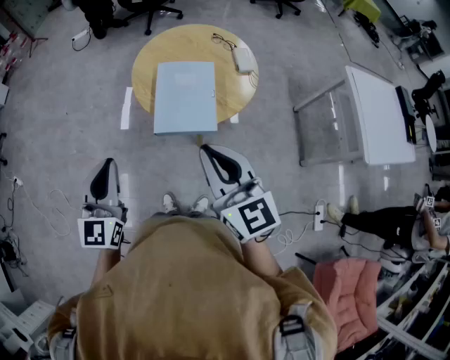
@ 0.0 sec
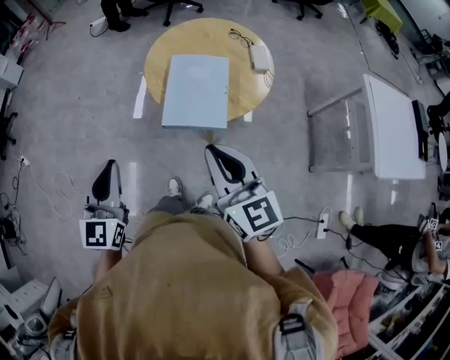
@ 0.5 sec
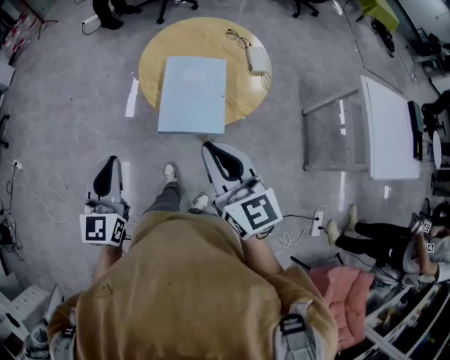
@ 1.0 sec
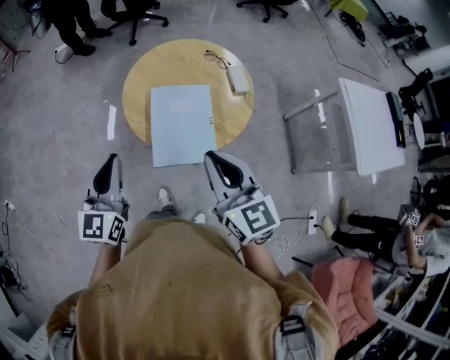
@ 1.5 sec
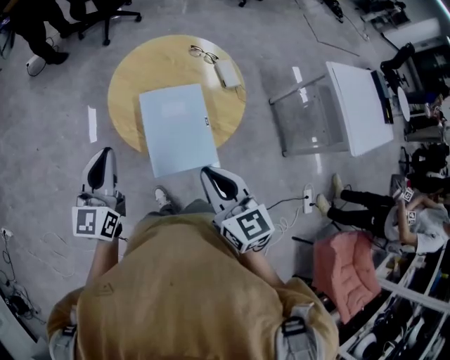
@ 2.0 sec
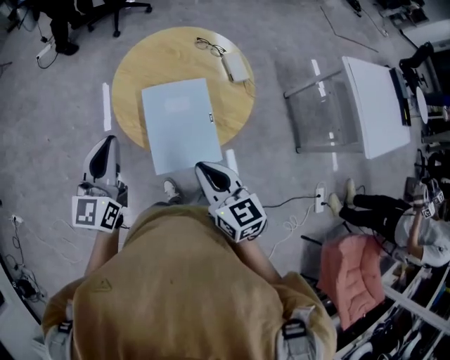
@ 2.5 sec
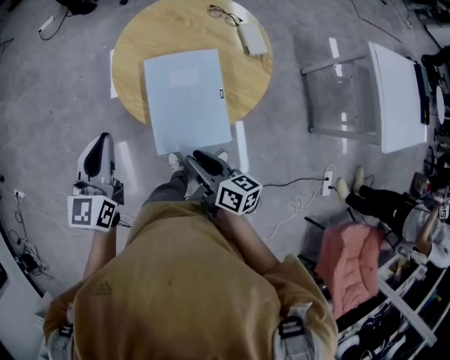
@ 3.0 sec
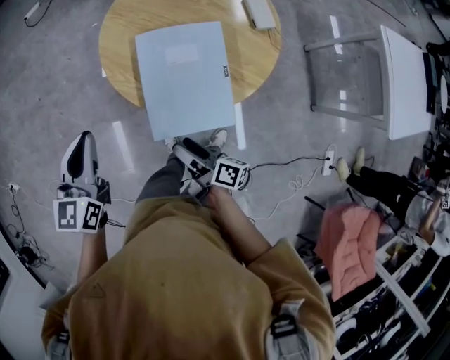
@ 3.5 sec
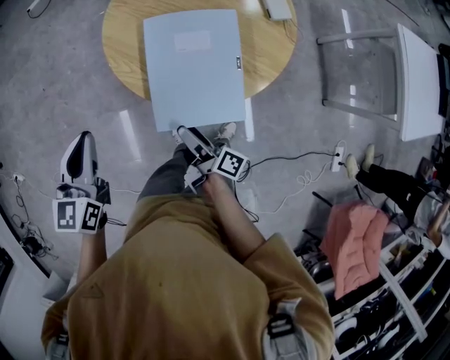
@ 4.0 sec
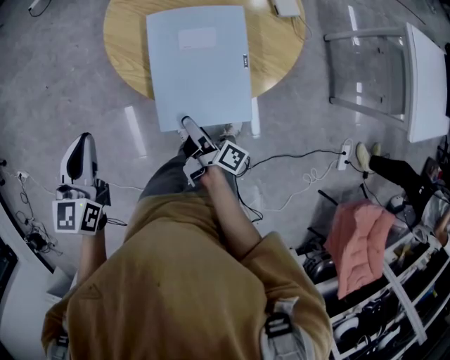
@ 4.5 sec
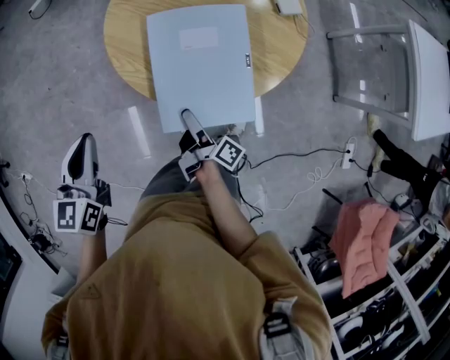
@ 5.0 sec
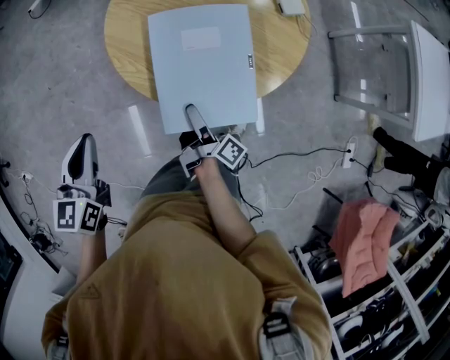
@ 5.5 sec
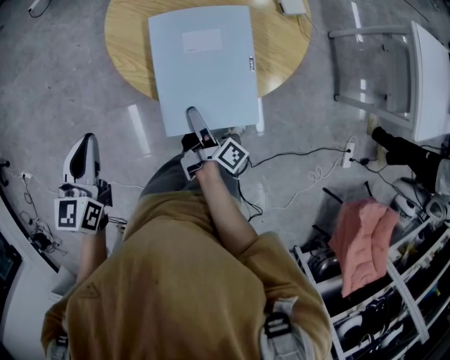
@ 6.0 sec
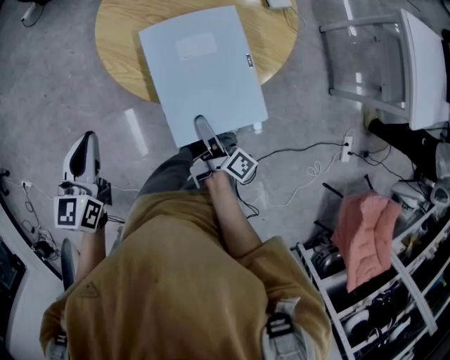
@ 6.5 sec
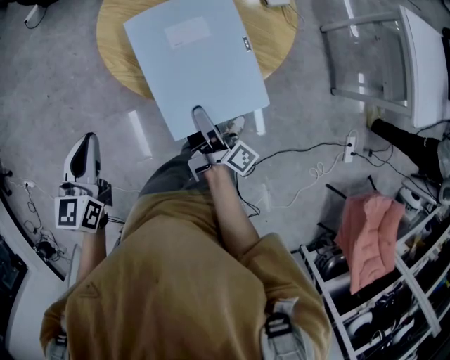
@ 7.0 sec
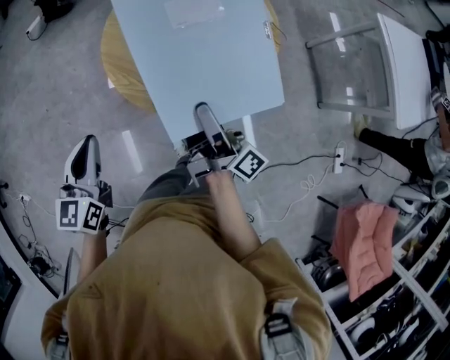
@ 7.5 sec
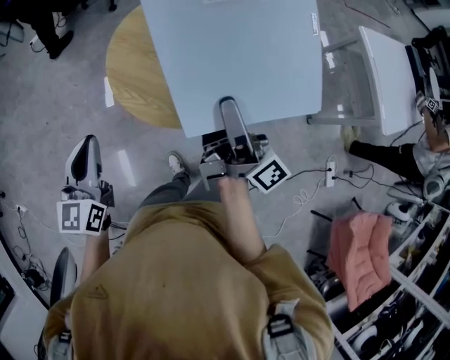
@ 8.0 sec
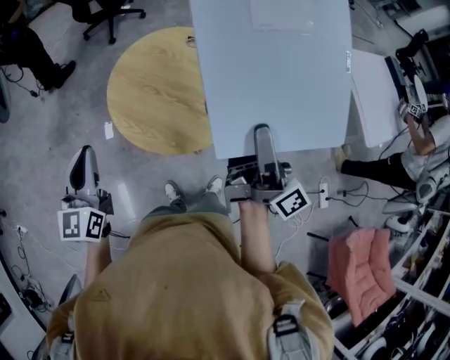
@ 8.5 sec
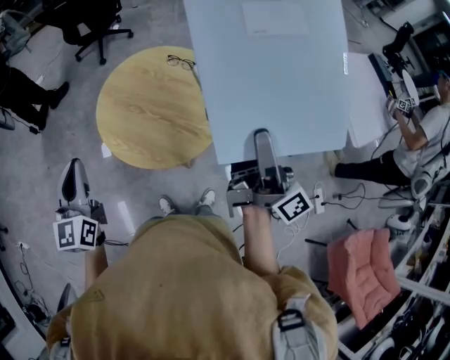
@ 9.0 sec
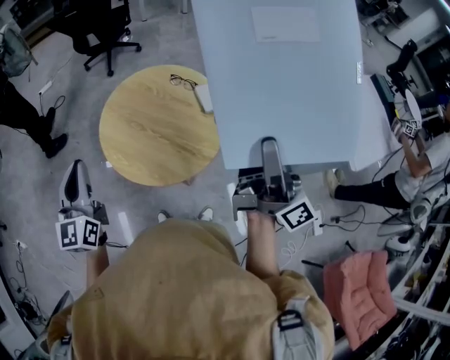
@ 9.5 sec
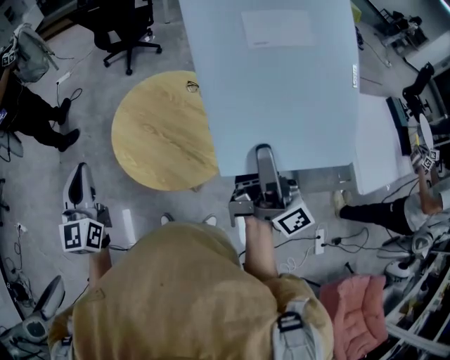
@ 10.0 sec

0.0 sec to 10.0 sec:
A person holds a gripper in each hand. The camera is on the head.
0.0 sec to 2.0 sec: The left gripper shifts some 25 cm forward, and swivels about 20 degrees. The right gripper moves forward and downward, roughly 15 cm, and rotates some 20 degrees.
2.0 sec to 4.0 sec: The left gripper moves downward, approximately 10 cm, and swivels approximately 20 degrees; the right gripper is displaced downward by about 30 cm, rotates around the line of its fingers by approximately 80 degrees, clockwise from behind, and opens its fingers.
4.0 sec to 6.0 sec: The right gripper shifts by about 5 cm.
6.0 sec to 8.0 sec: The right gripper goes about 35 cm upward, and tips its fingers upward by some 30 degrees. Meanwhile the left gripper heads upward, covering some 10 cm.
8.0 sec to 10.0 sec: The right gripper moves to the right and upward, some 25 cm, while the left gripper moves upward and to the right, about 15 cm, and turns by some 20 degrees.

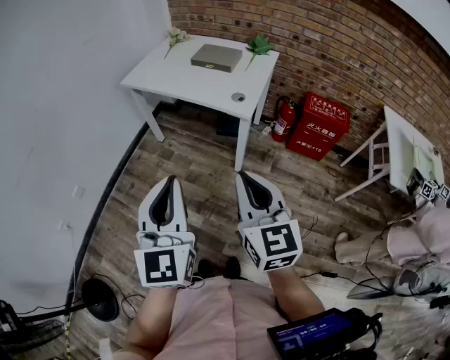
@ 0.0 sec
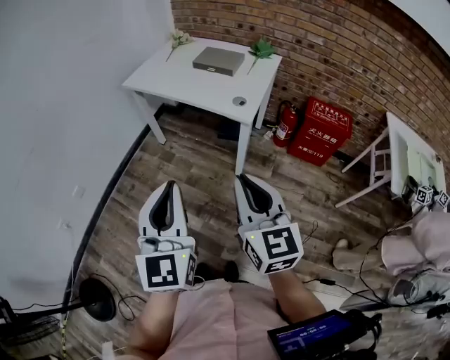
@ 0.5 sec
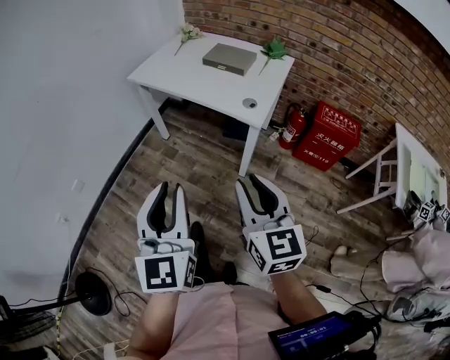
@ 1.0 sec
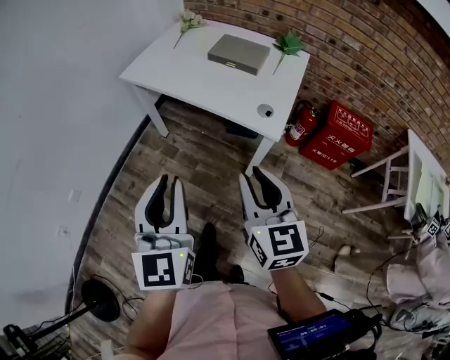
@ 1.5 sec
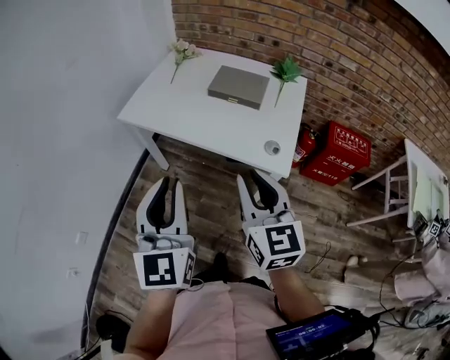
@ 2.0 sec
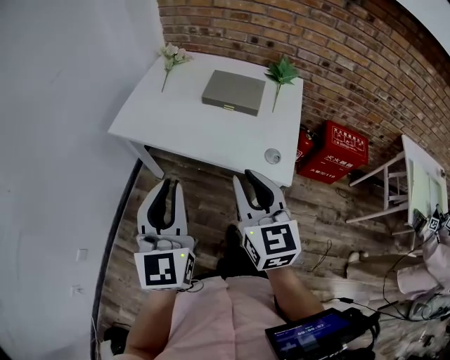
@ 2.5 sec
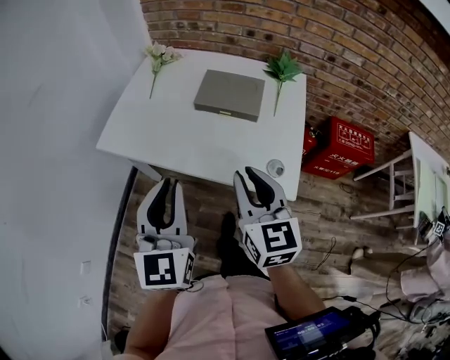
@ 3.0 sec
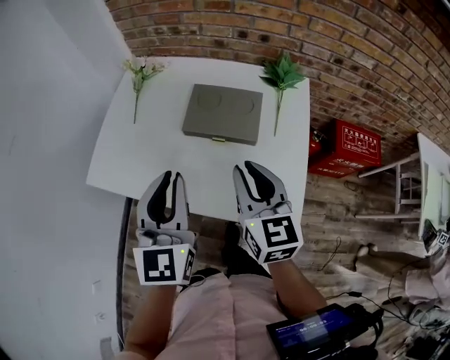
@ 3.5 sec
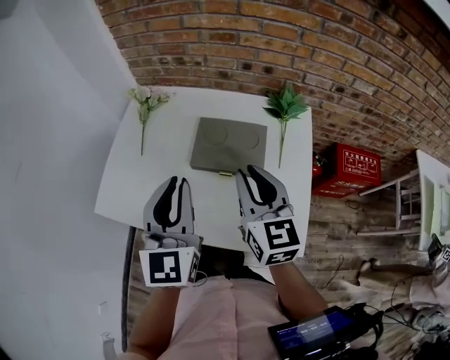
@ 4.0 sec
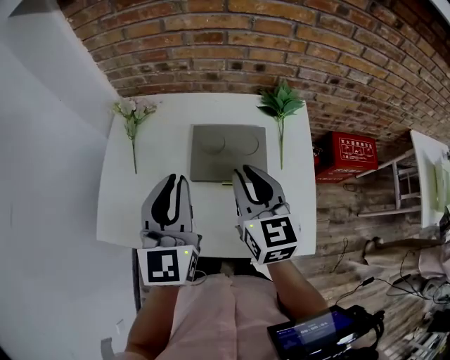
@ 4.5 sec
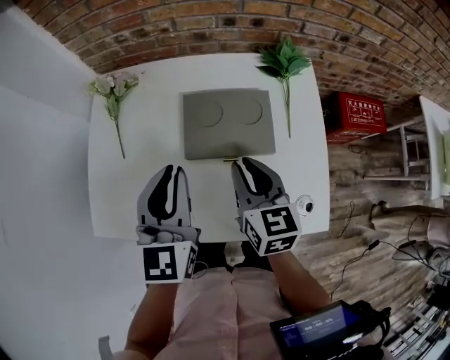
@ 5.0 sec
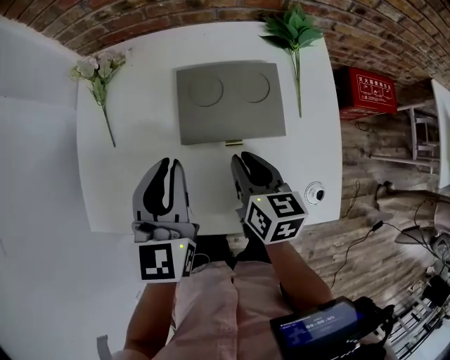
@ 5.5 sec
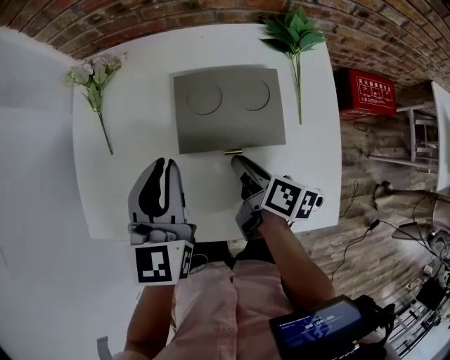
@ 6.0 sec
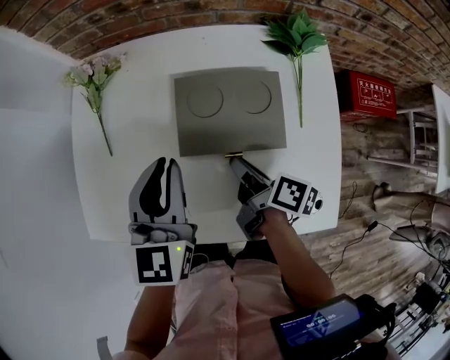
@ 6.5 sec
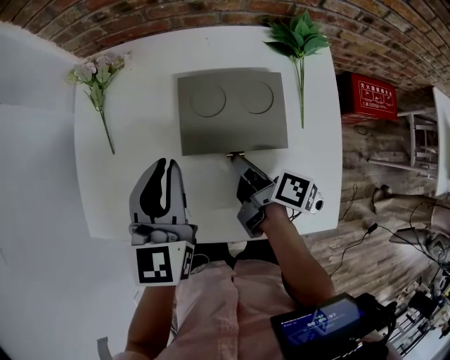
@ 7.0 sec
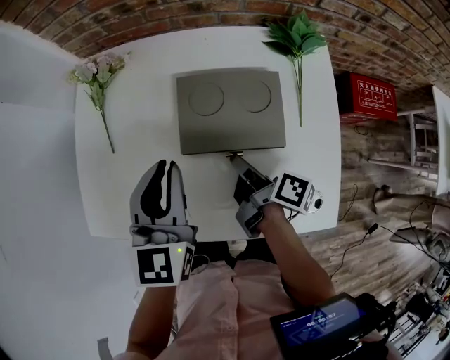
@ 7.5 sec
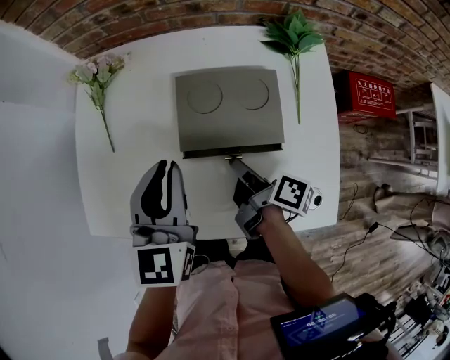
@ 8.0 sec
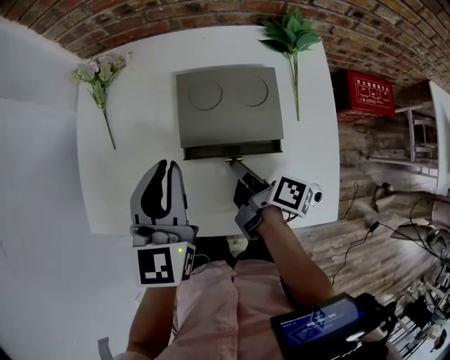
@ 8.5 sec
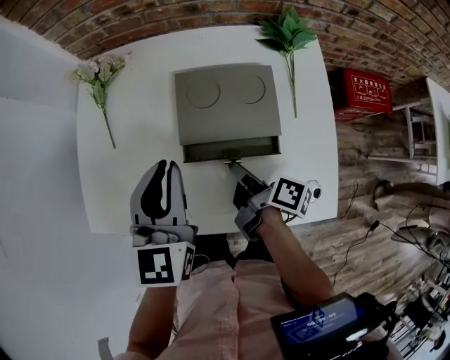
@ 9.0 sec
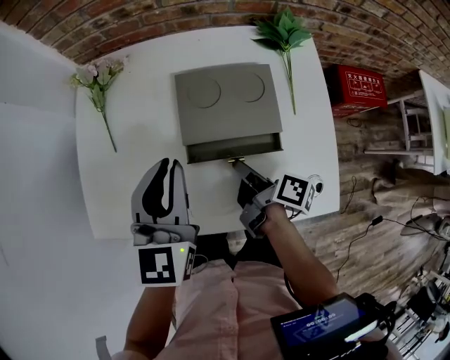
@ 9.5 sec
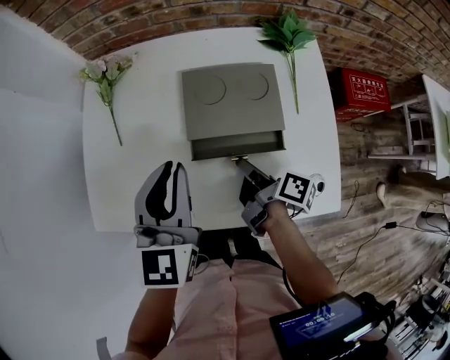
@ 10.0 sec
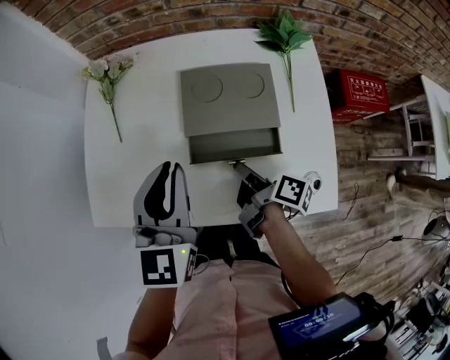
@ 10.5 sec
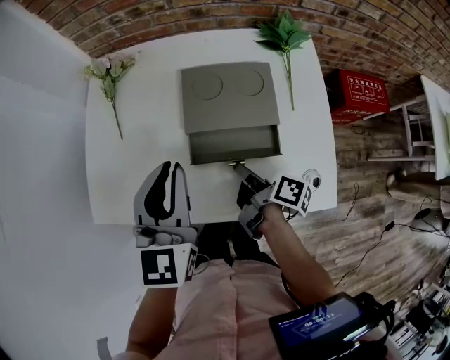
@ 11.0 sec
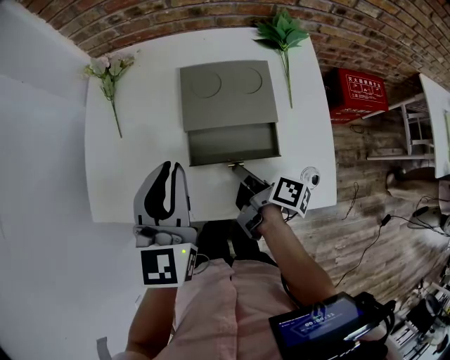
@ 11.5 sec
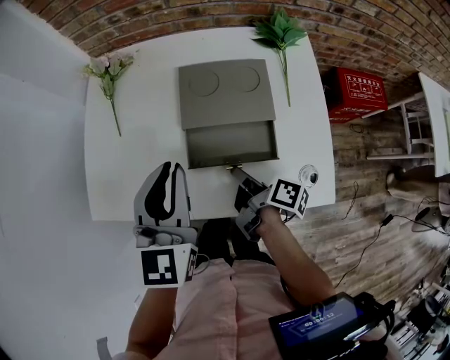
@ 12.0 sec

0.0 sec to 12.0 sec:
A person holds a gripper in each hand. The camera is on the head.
0.0 sec to 2.0 sec: Both grippers travel together forward, approximately 30 cm. The right gripper opens.
2.0 sec to 4.0 sec: Both grippers travel together forward, some 35 cm.
4.0 sec to 6.0 sec: The left gripper goes about 15 cm downward and forward, and turns by some 20 degrees. The right gripper goes approximately 25 cm downward, and rolls clockwise, seen from behind, by approximately 60 degrees.
6.0 sec to 10.0 sec: There are only small adjustments of the grippers.
10.0 sec to 12.0 sec: The grippers stay close to where they were, moving slightly.

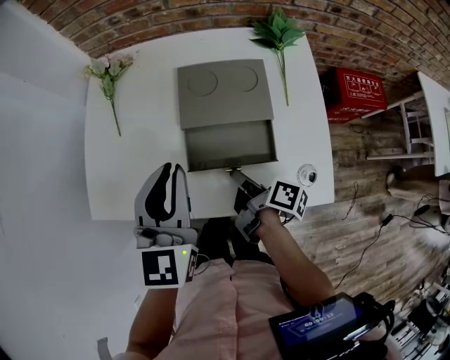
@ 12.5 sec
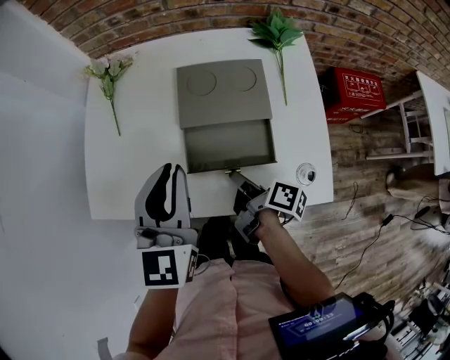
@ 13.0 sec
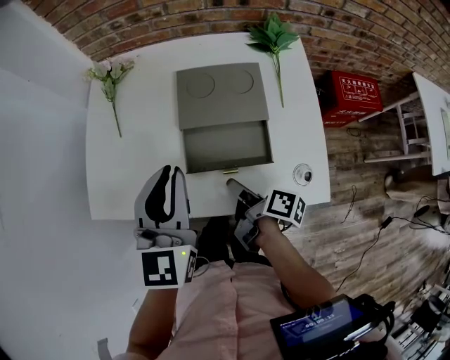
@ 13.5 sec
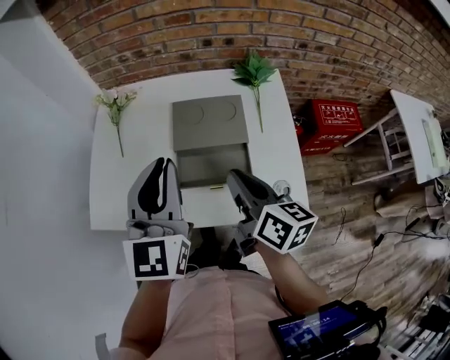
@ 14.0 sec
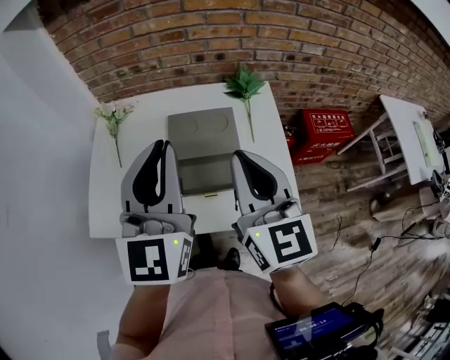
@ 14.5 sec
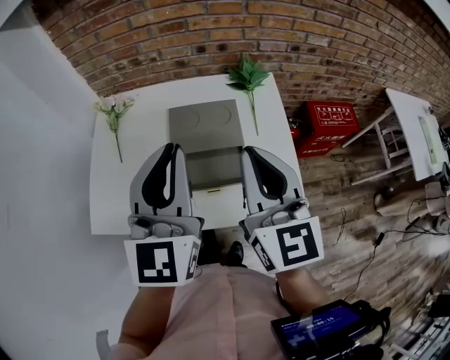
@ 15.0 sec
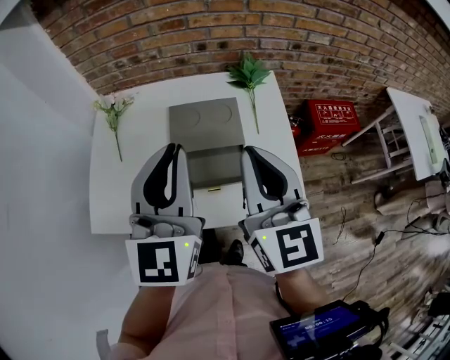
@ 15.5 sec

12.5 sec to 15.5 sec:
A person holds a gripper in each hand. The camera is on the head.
12.5 sec to 14.0 sec: The right gripper shifts approximately 20 cm upward, rolls counterclockwise, seen from behind, by some 50 degrees, and opens, then closes again, while the left gripper travels upward by some 10 cm.
14.0 sec to 15.5 sec: The left gripper changes place by about 5 cm; the right gripper goes about 15 cm upward, and turns by some 40 degrees.

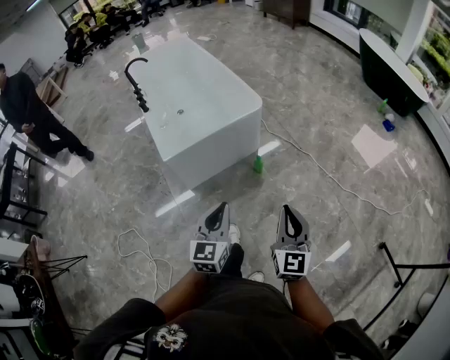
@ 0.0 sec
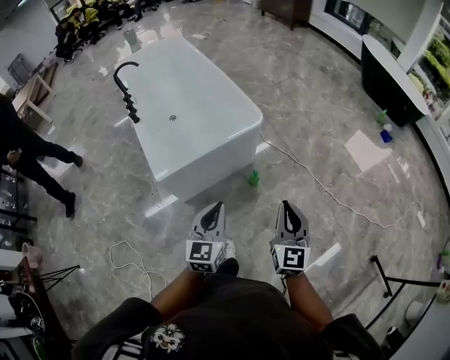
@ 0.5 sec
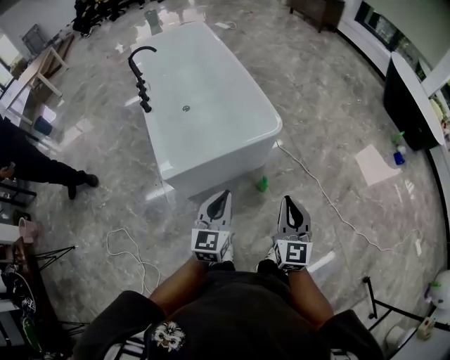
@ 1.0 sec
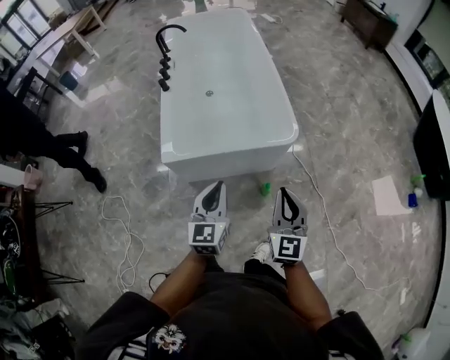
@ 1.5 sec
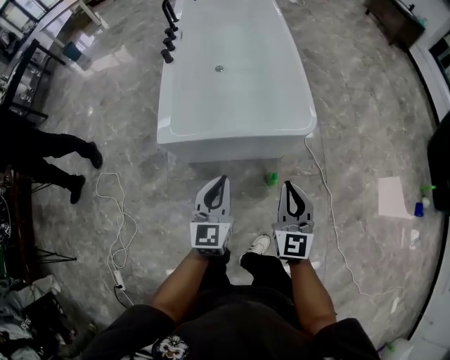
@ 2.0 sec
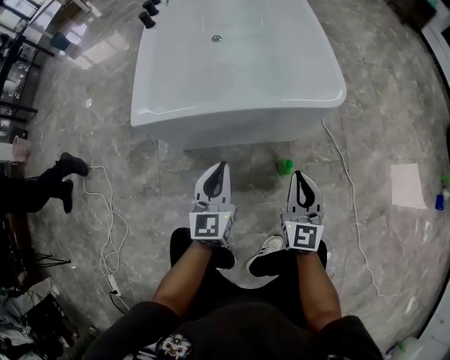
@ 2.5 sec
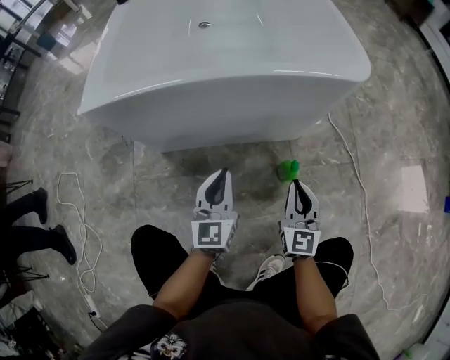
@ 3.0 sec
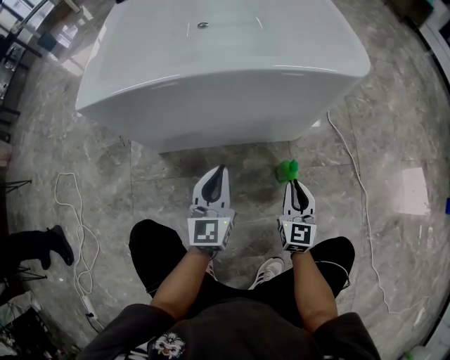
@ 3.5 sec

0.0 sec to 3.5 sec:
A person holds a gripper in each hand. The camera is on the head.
0.0 sec to 2.0 sec: The left gripper shifts by roughly 40 cm, and rotates some 30 degrees. The right gripper shifts by about 50 cm, and changes its angle by approximately 30 degrees.
2.0 sec to 3.5 sec: The two grippers go approximately 50 cm downward.
